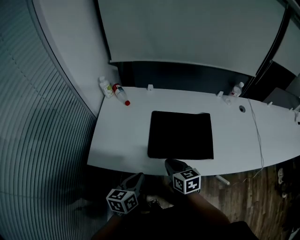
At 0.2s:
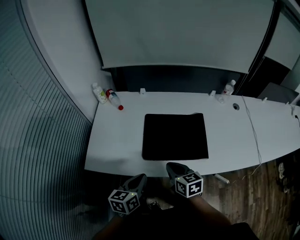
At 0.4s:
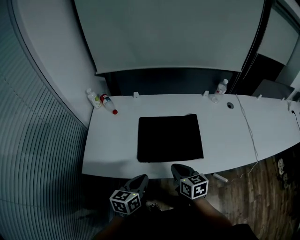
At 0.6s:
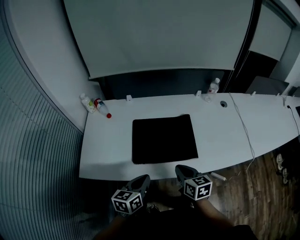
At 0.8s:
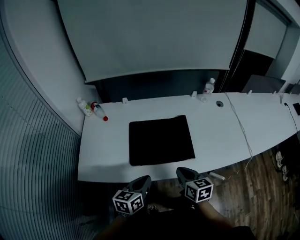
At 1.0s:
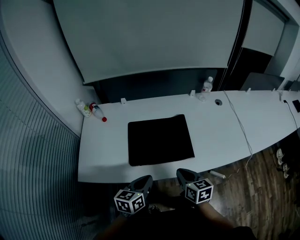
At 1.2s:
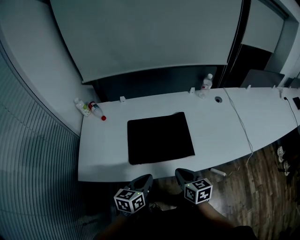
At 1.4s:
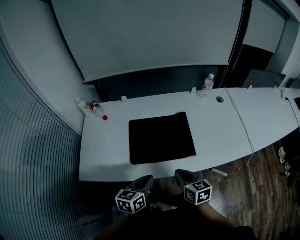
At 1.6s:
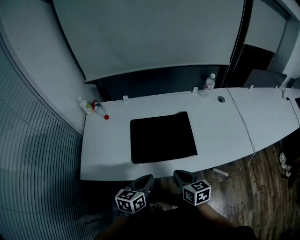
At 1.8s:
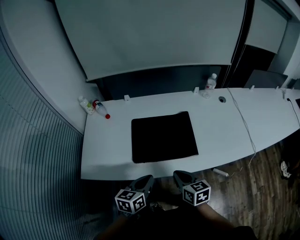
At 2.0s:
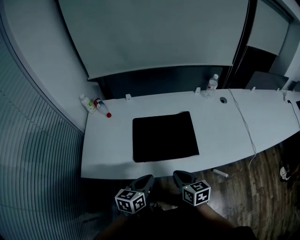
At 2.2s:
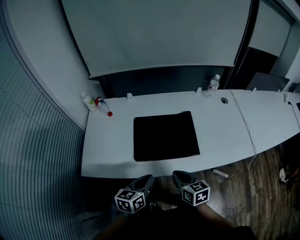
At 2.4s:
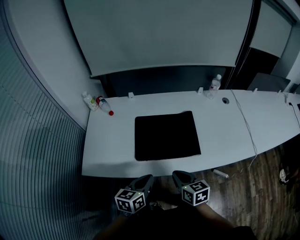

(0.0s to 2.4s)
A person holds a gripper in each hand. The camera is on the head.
0.0s - 1.2s: The grippers both shift to the right by about 15 cm.
1.2s - 2.4s: There are only small adjustments of the grippers.

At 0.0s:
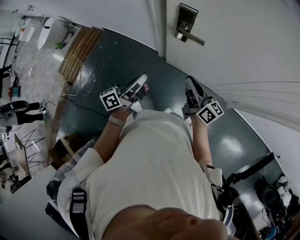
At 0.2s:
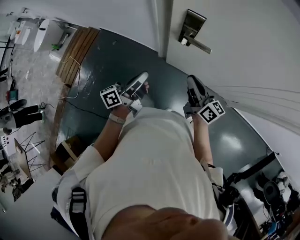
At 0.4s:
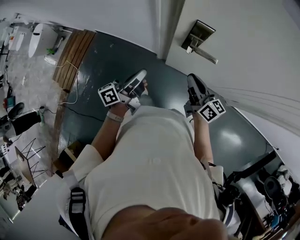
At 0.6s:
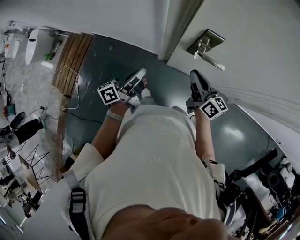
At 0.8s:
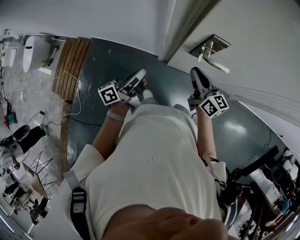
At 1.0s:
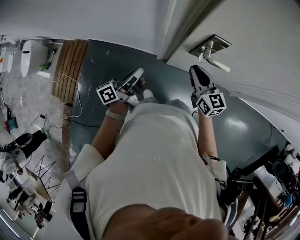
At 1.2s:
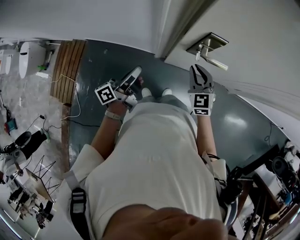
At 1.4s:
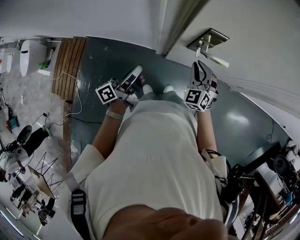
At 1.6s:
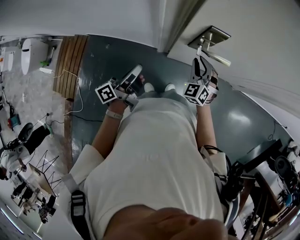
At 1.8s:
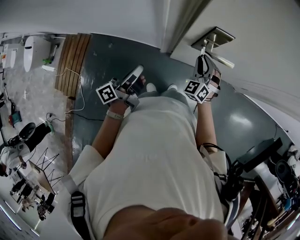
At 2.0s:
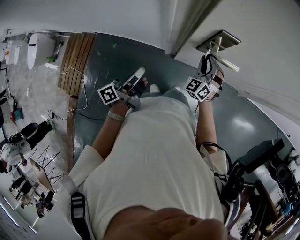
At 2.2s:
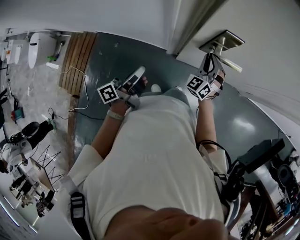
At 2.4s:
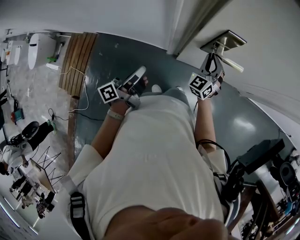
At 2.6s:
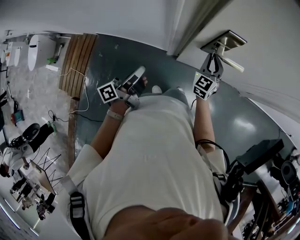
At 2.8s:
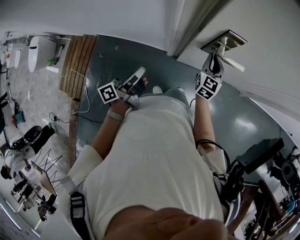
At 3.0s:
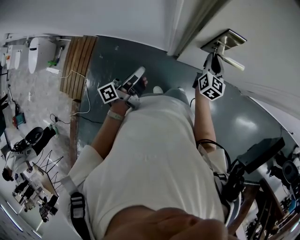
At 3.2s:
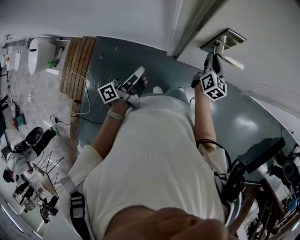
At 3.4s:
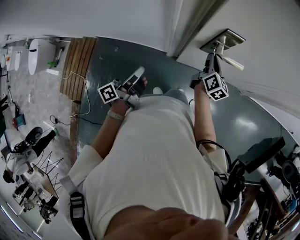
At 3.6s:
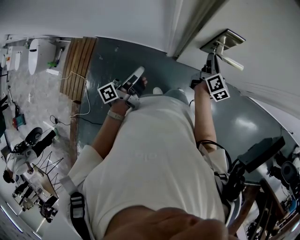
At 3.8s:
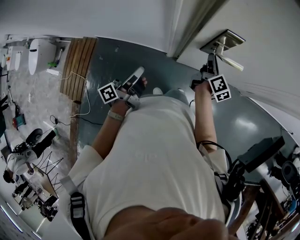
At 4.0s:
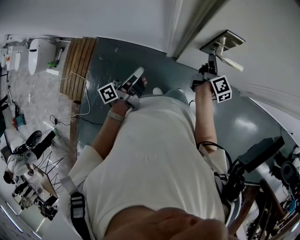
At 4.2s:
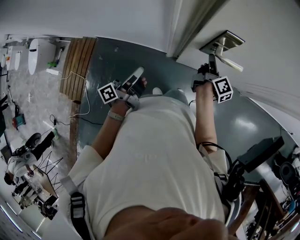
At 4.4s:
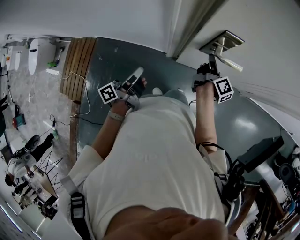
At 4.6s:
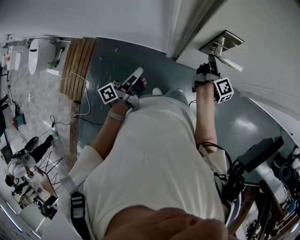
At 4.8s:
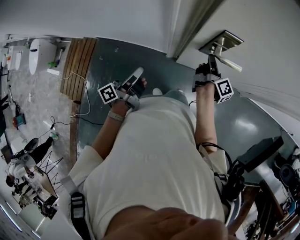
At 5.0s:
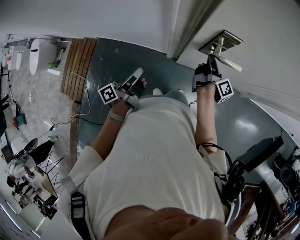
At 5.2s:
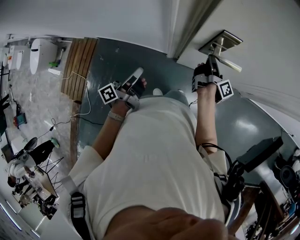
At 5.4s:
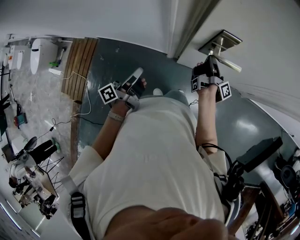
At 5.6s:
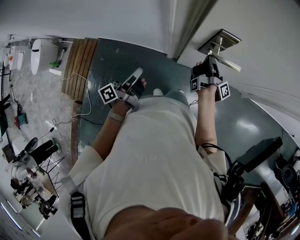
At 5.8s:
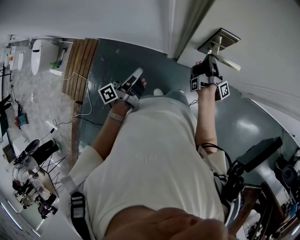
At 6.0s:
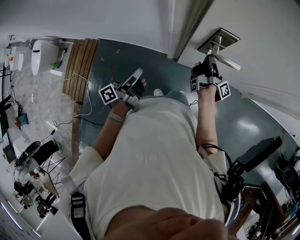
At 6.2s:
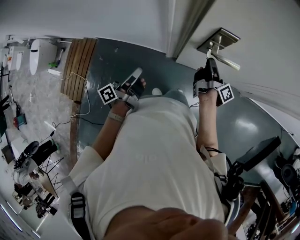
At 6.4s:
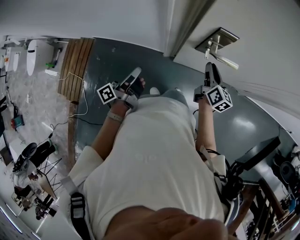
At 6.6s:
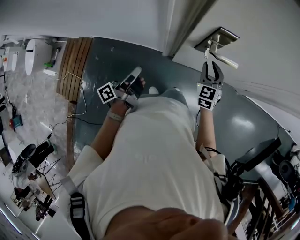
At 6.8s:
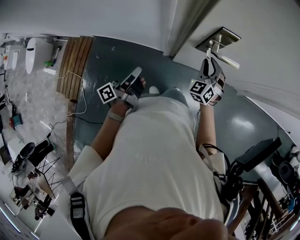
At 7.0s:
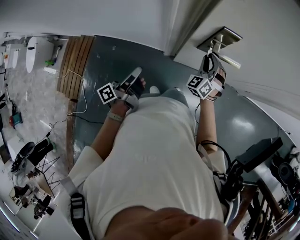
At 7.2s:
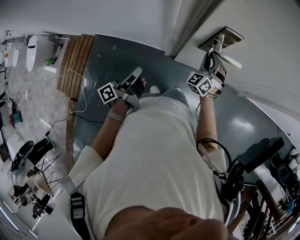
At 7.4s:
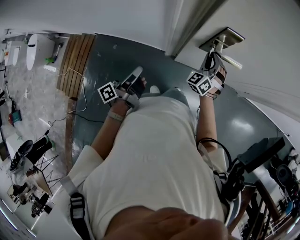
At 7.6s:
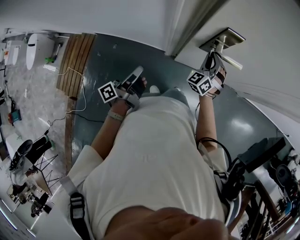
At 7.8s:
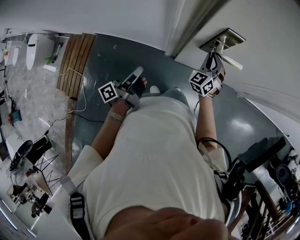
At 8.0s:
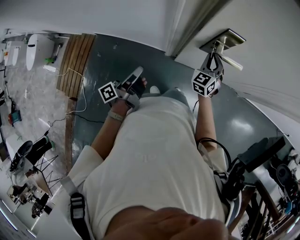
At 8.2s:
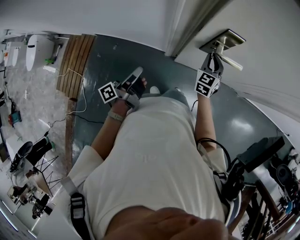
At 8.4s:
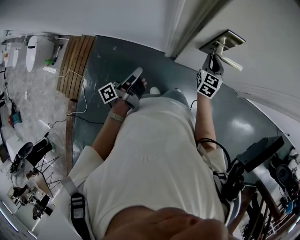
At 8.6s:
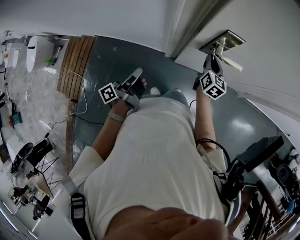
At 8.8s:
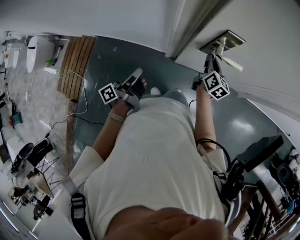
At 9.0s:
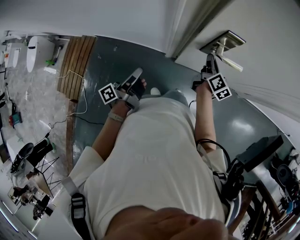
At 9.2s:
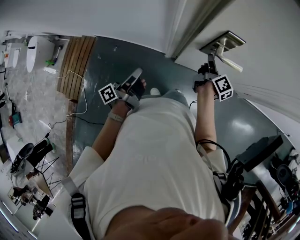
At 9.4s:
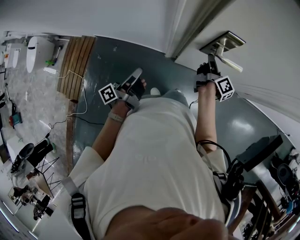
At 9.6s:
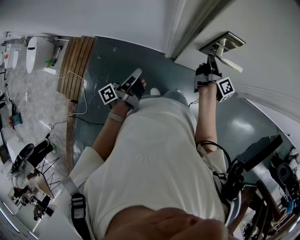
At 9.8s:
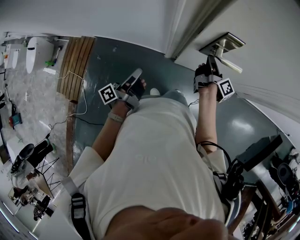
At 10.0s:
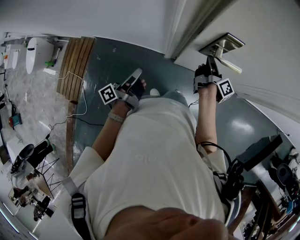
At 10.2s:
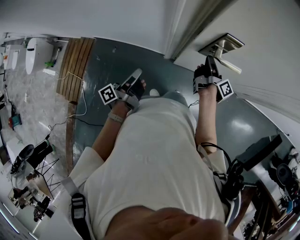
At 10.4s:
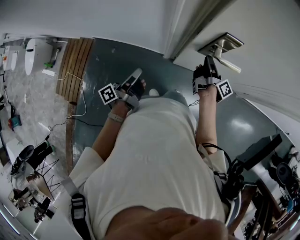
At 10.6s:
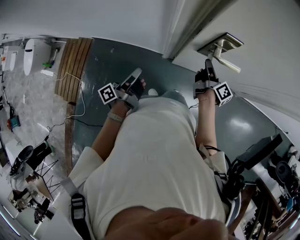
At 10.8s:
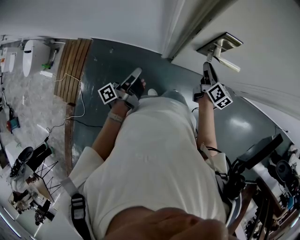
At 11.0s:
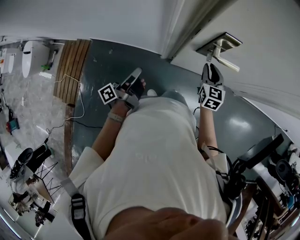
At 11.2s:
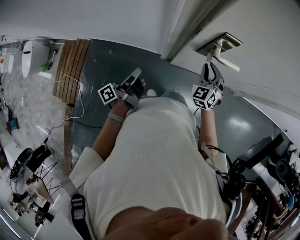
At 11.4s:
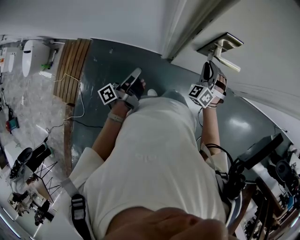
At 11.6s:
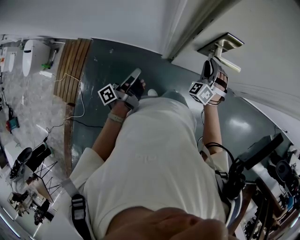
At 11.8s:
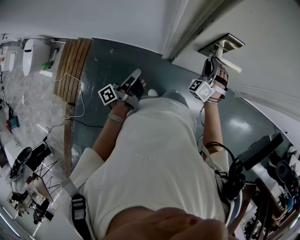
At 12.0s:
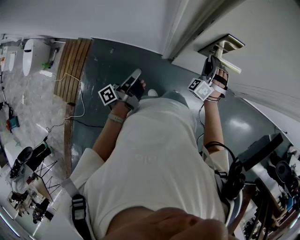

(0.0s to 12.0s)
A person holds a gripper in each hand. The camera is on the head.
0.0s - 1.6s: The right gripper moves about 30 cm, and points its fingers approximately 30 degrees further downward.
1.6s - 3.0s: The right gripper ends up roughly 5 cm from where it was, and rotates around the line of its fingers by roughly 60 degrees, clockwise from behind.
3.0s - 4.4s: The right gripper rotates around the line of its fingers by some 60 degrees, clockwise from behind.
4.4s - 6.0s: The right gripper turns by about 30 degrees.
6.0s - 7.6s: The right gripper twists roughly 160 degrees counterclockwise, seen from behind.
7.6s - 9.0s: The right gripper twists about 100 degrees clockwise, seen from behind.
9.0s - 10.4s: The right gripper rolls clockwise, seen from behind, by about 40 degrees.
10.4s - 12.0s: The right gripper rolls counterclockwise, seen from behind, by roughly 160 degrees.

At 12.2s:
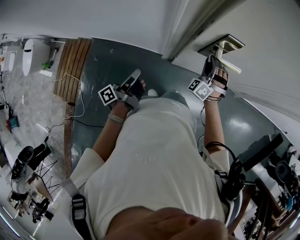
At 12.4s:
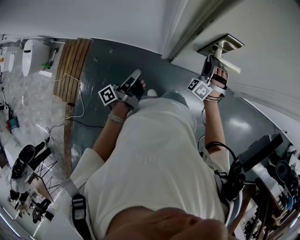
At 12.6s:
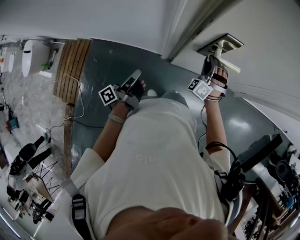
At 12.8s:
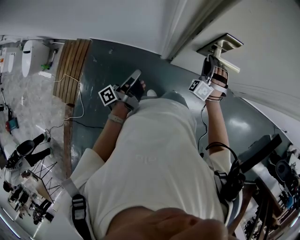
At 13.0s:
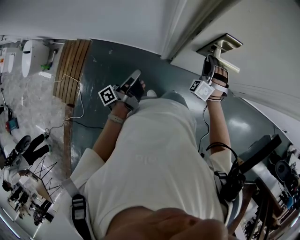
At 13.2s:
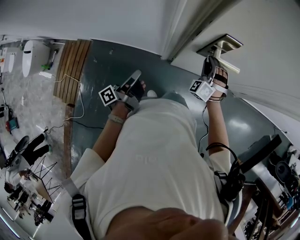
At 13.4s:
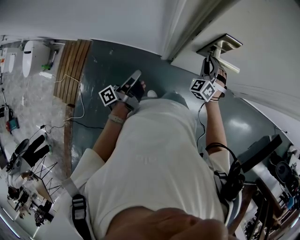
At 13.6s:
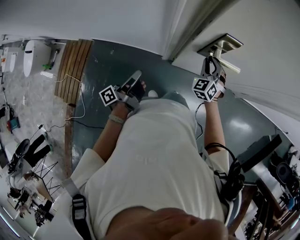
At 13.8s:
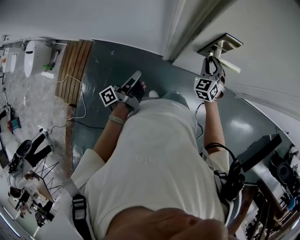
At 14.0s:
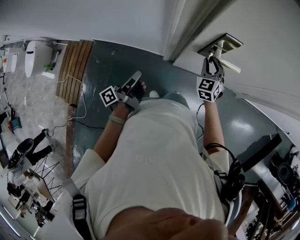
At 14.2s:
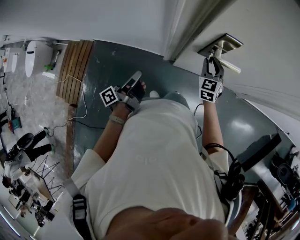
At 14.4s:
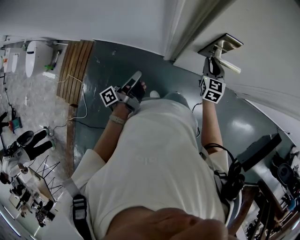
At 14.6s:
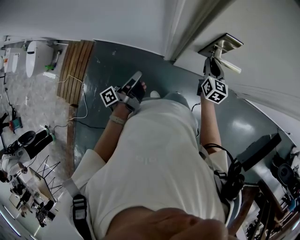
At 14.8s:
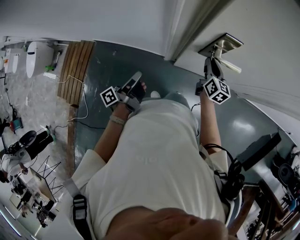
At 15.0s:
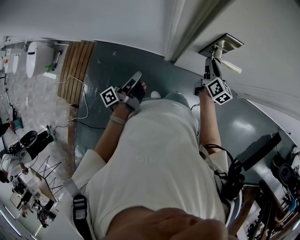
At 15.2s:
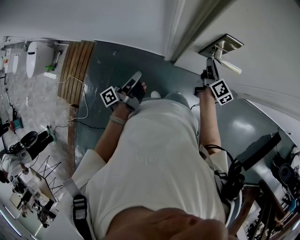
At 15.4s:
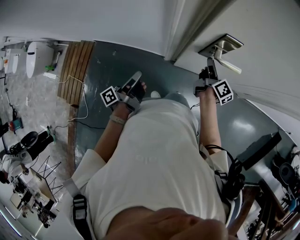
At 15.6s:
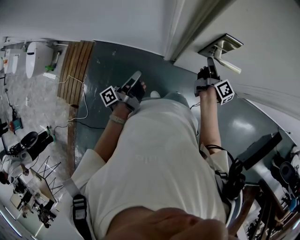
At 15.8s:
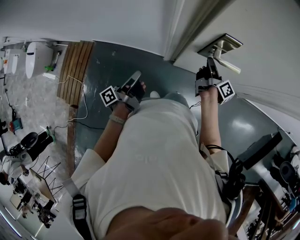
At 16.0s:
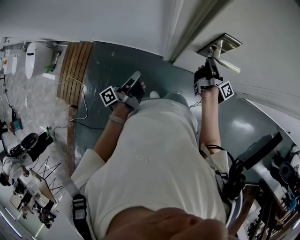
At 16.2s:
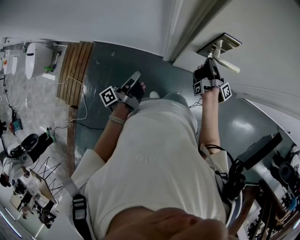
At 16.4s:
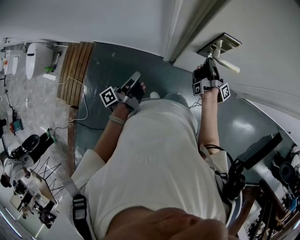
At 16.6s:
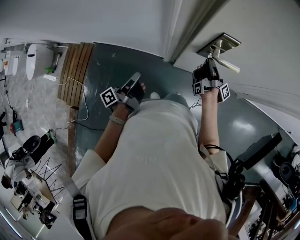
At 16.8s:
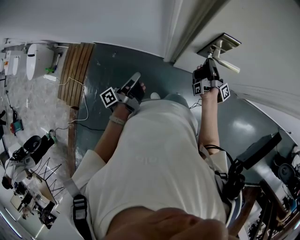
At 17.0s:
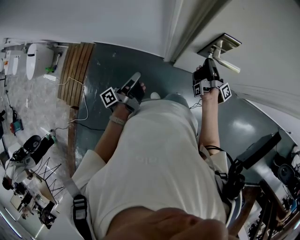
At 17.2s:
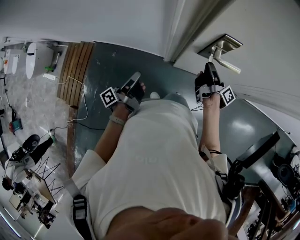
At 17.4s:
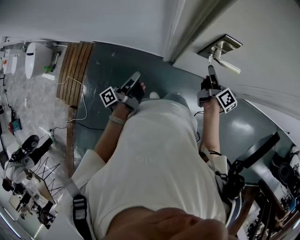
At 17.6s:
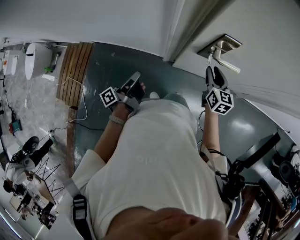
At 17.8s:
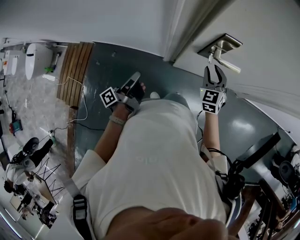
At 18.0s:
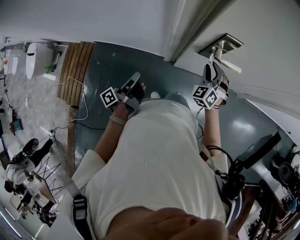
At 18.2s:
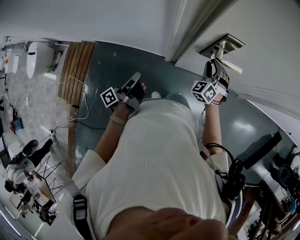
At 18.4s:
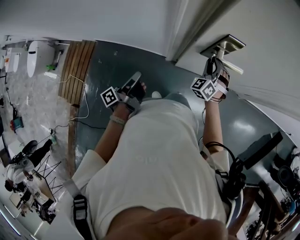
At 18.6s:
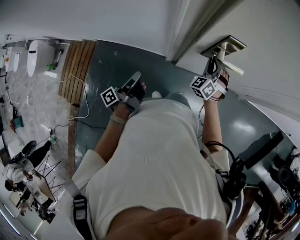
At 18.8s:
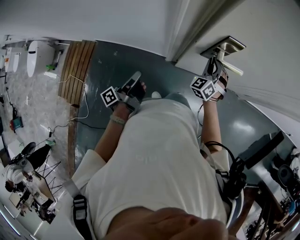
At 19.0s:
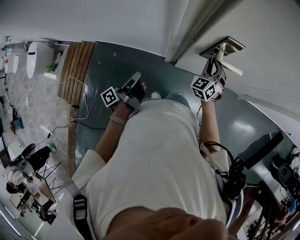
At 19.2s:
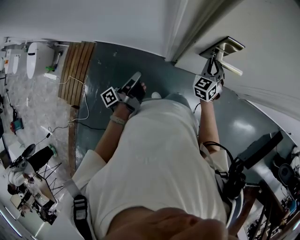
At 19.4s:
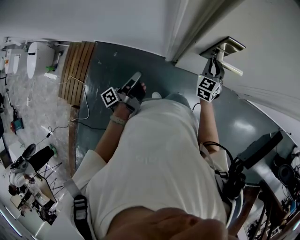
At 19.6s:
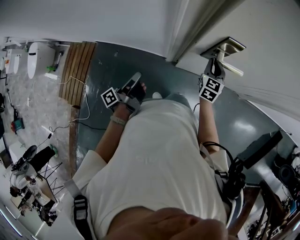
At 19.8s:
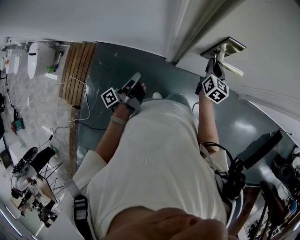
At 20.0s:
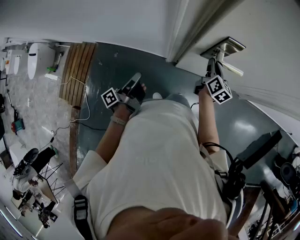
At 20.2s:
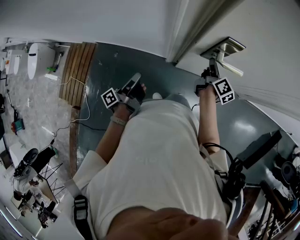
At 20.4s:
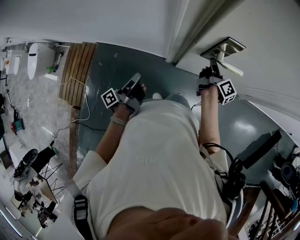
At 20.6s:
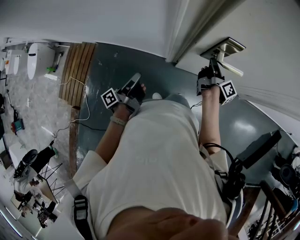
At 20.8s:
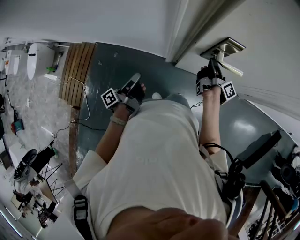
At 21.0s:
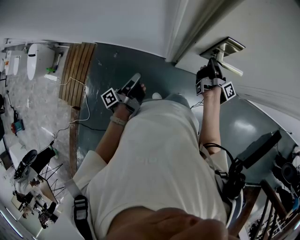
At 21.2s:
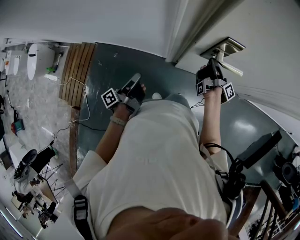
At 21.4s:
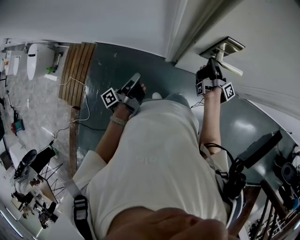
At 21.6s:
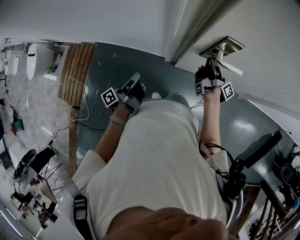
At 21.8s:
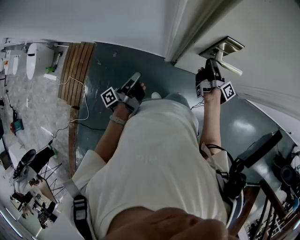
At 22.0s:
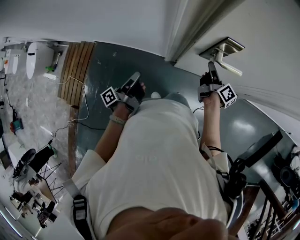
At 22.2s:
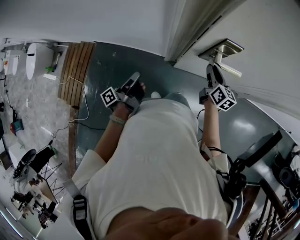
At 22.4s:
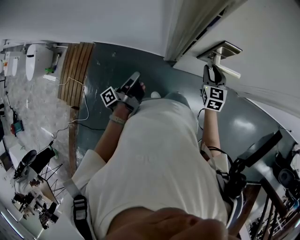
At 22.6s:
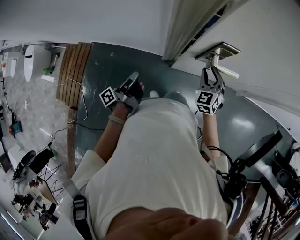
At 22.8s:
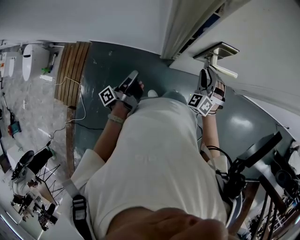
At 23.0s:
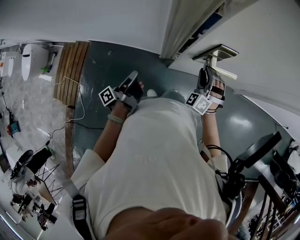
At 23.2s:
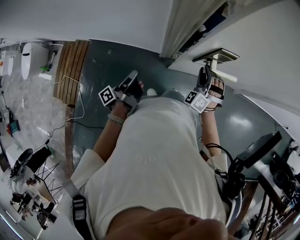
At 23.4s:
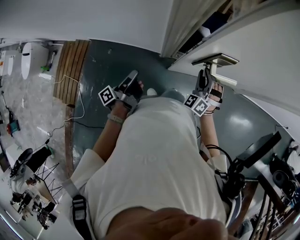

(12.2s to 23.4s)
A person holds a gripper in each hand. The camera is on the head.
12.2s - 13.8s: The right gripper changes its angle by roughly 40 degrees.
13.8s - 15.4s: The right gripper rotates around the line of its fingers by some 100 degrees, clockwise from behind.
15.4s - 17.0s: The right gripper twists roughly 40 degrees clockwise, seen from behind.
17.0s - 18.6s: The right gripper rotates around the line of its fingers by approximately 160 degrees, counterclockwise from behind.
18.6s - 20.2s: The right gripper rotates around the line of its fingers by approximately 110 degrees, clockwise from behind.
20.2s - 21.8s: The right gripper turns by roughly 40 degrees.
21.8s - 23.4s: The right gripper ends up roughly 10 cm from where it was, and twists about 150 degrees counterclockwise, seen from behind.
